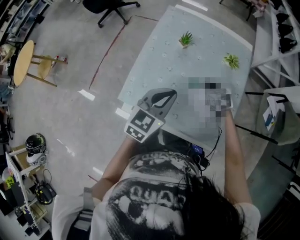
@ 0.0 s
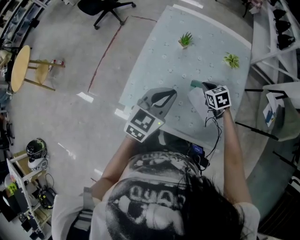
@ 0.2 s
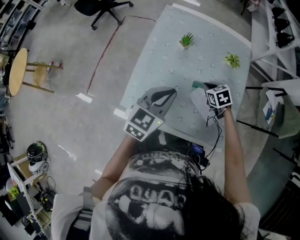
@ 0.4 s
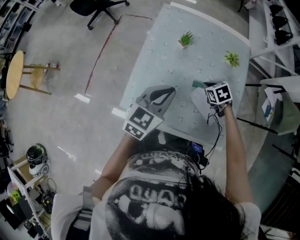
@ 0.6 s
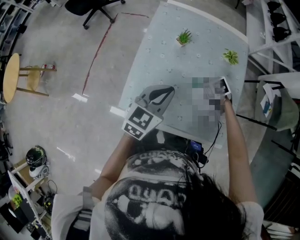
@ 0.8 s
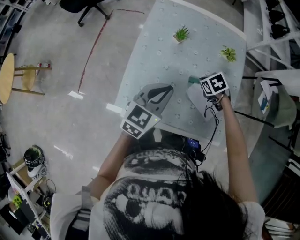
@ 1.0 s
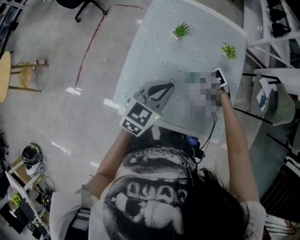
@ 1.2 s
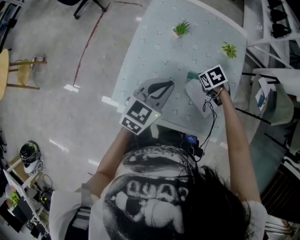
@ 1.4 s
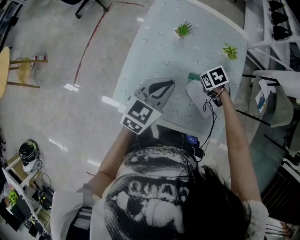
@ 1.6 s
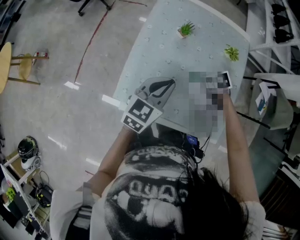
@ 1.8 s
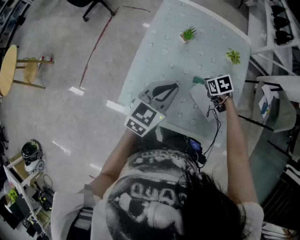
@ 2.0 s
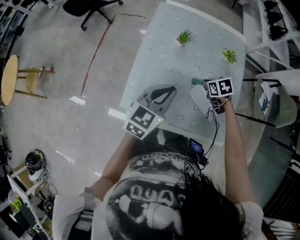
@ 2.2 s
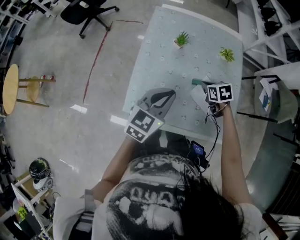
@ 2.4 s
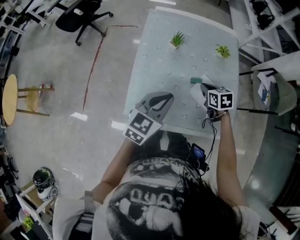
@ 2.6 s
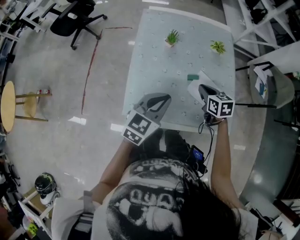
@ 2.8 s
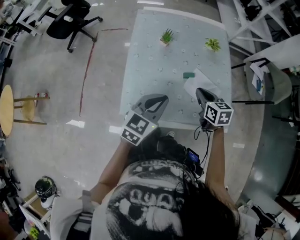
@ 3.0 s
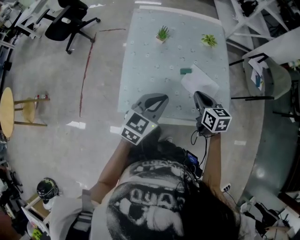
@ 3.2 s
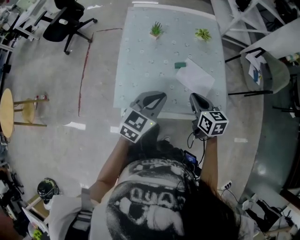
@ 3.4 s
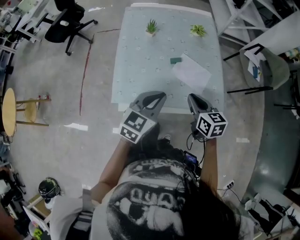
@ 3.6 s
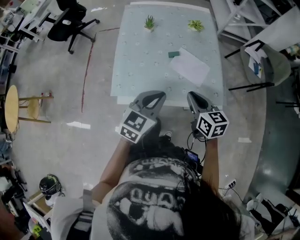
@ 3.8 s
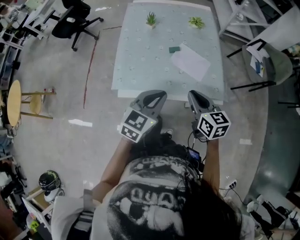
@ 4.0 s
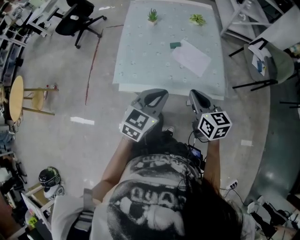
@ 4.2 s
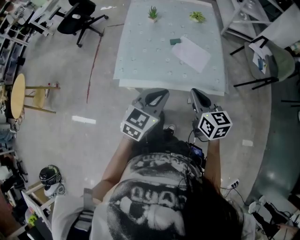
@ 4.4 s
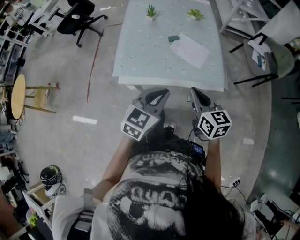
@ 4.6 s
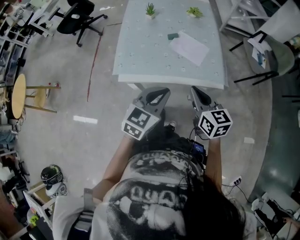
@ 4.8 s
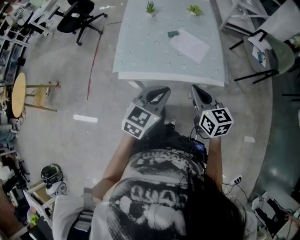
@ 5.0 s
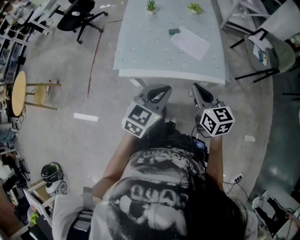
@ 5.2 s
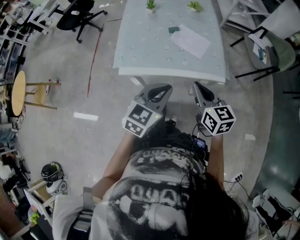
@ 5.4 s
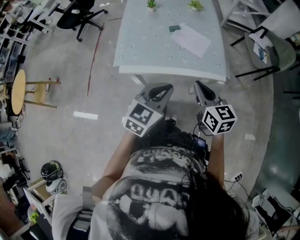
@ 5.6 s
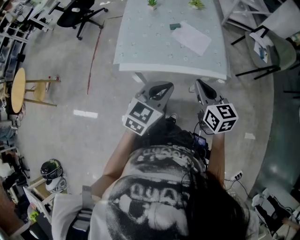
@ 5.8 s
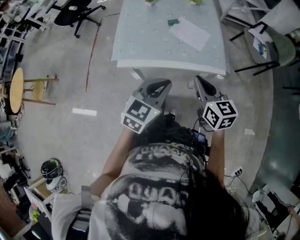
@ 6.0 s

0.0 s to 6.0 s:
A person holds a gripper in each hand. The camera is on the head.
0.0 to 1.6 s: The left gripper changes place by some 5 cm. Meanwhile the right gripper swivels about 30 degrees.
1.6 to 3.0 s: The left gripper ends up roughly 10 cm from where it was. Meanwhile the right gripper travels upward by roughly 10 cm, and tilts its fingers about 40 degrees upward.
3.0 to 4.4 s: The right gripper shifts some 25 cm backward. The left gripper travels backward and to the right by about 20 cm.
4.4 to 6.0 s: The two grippers go roughly 5 cm backward.

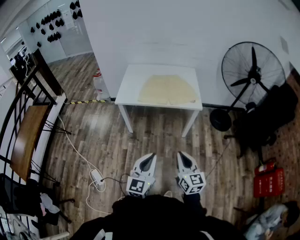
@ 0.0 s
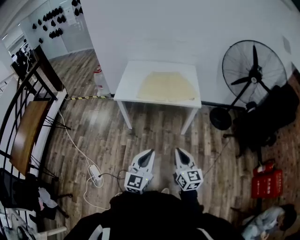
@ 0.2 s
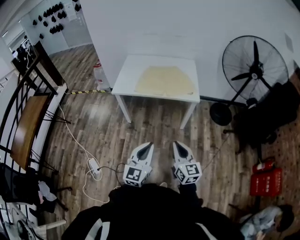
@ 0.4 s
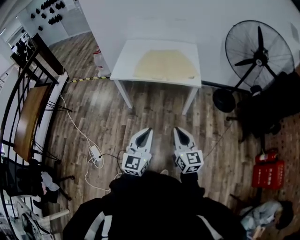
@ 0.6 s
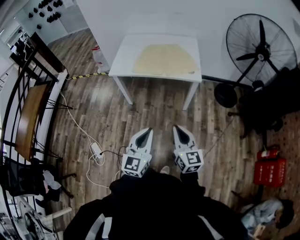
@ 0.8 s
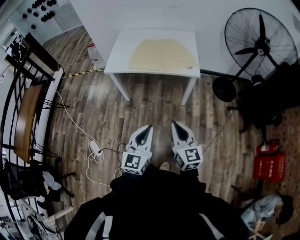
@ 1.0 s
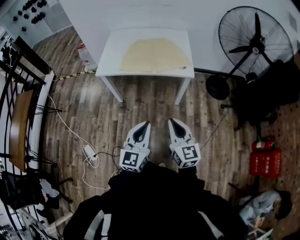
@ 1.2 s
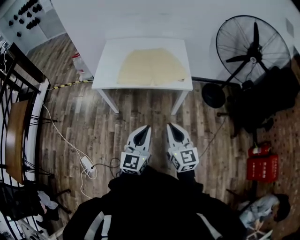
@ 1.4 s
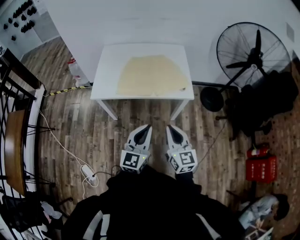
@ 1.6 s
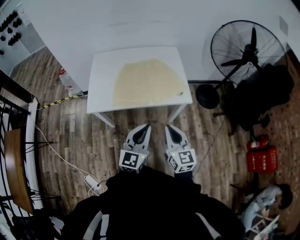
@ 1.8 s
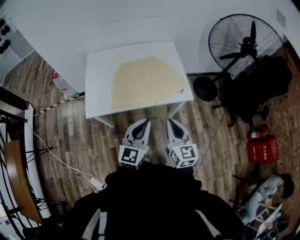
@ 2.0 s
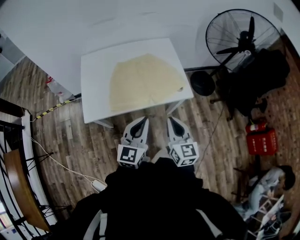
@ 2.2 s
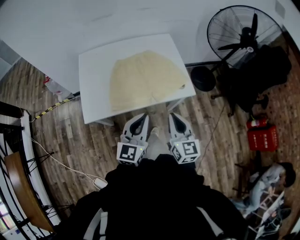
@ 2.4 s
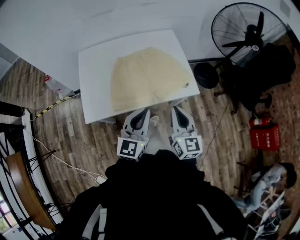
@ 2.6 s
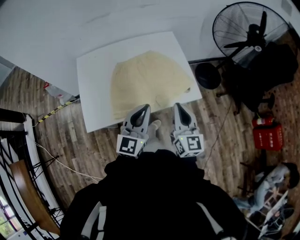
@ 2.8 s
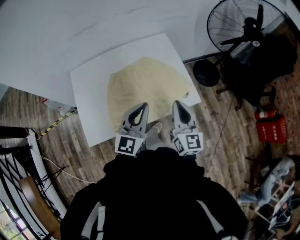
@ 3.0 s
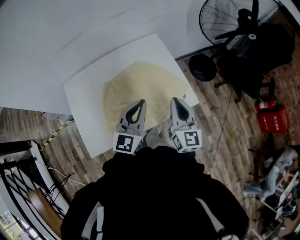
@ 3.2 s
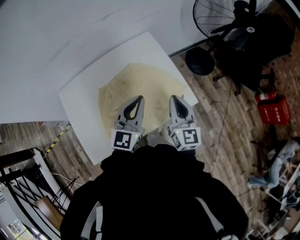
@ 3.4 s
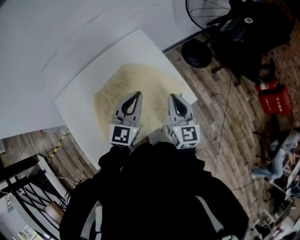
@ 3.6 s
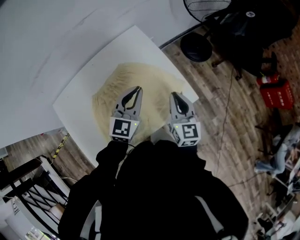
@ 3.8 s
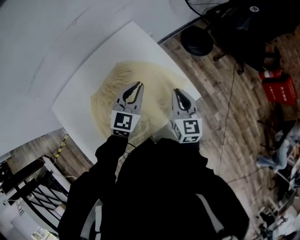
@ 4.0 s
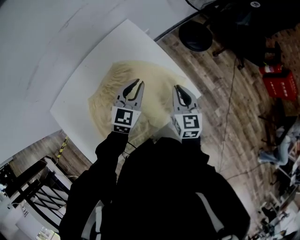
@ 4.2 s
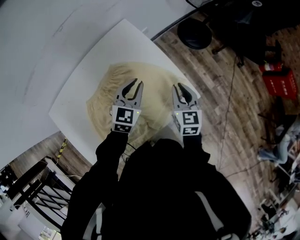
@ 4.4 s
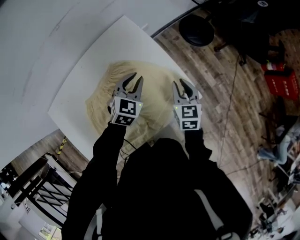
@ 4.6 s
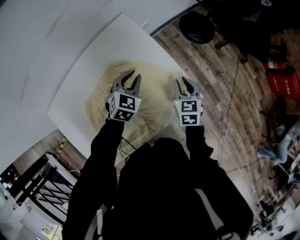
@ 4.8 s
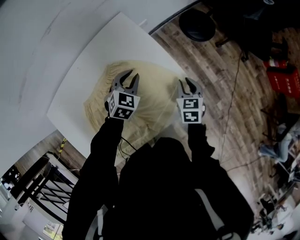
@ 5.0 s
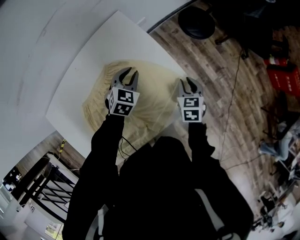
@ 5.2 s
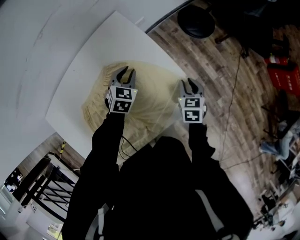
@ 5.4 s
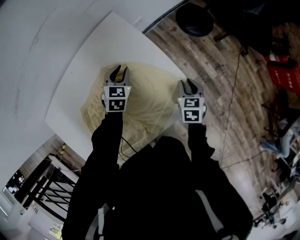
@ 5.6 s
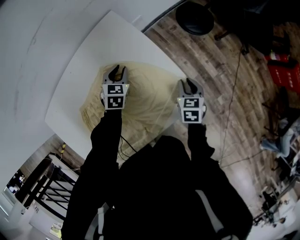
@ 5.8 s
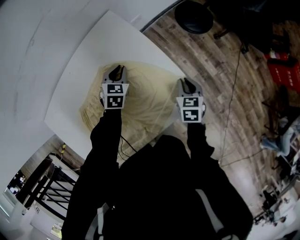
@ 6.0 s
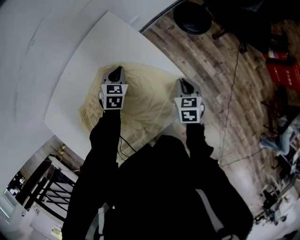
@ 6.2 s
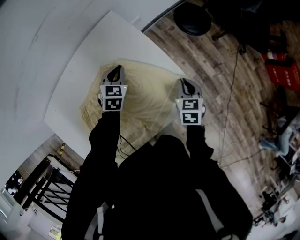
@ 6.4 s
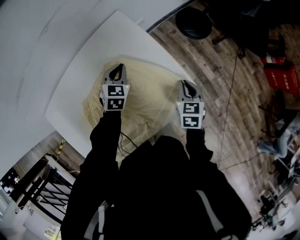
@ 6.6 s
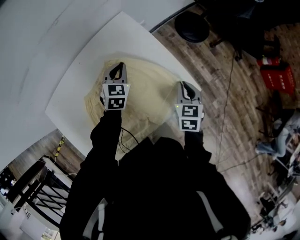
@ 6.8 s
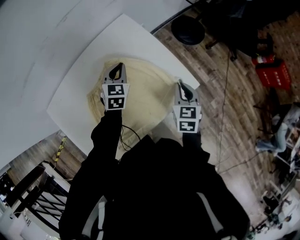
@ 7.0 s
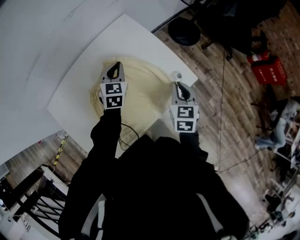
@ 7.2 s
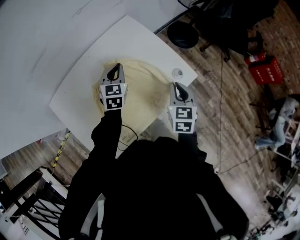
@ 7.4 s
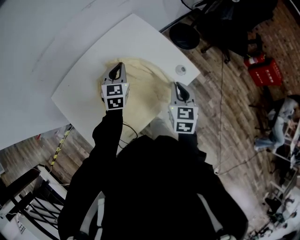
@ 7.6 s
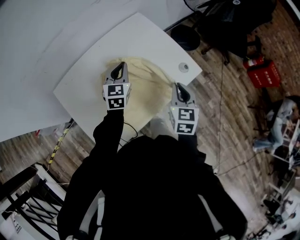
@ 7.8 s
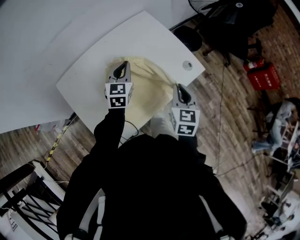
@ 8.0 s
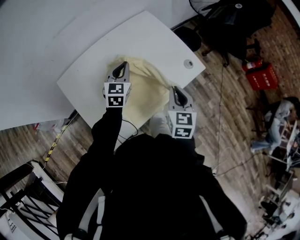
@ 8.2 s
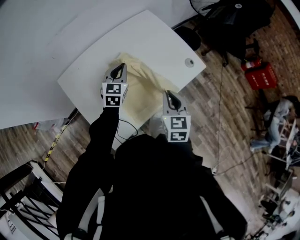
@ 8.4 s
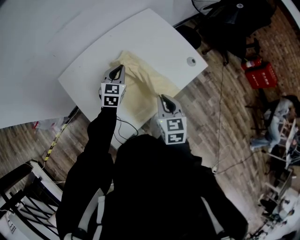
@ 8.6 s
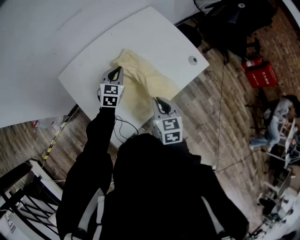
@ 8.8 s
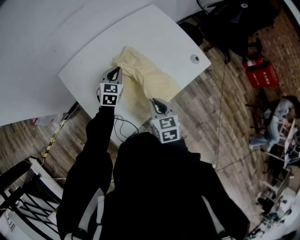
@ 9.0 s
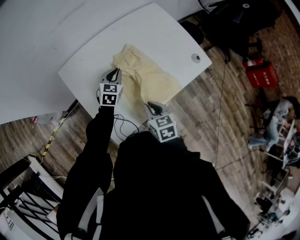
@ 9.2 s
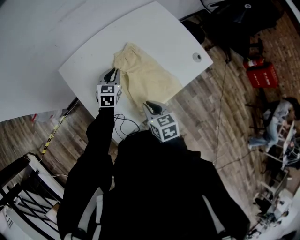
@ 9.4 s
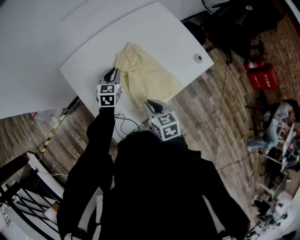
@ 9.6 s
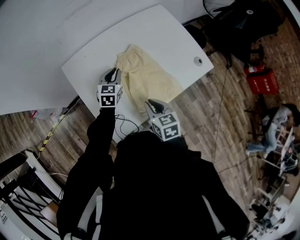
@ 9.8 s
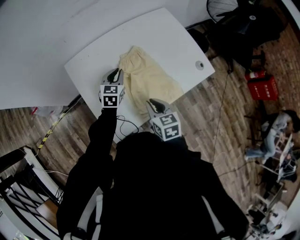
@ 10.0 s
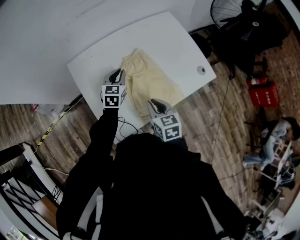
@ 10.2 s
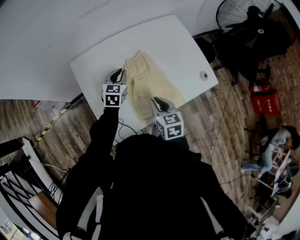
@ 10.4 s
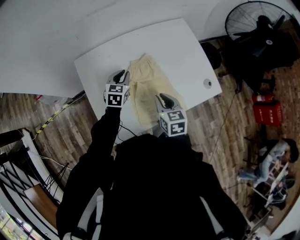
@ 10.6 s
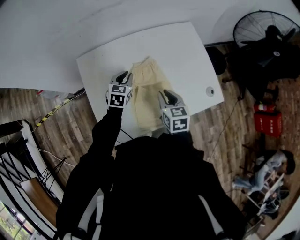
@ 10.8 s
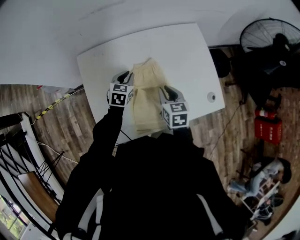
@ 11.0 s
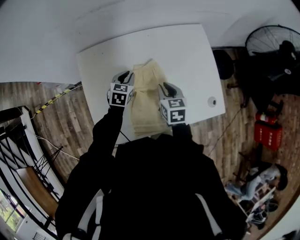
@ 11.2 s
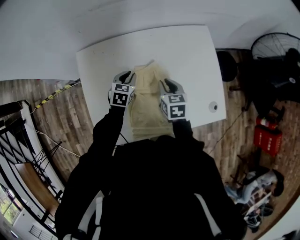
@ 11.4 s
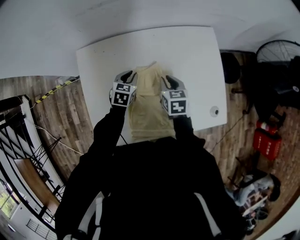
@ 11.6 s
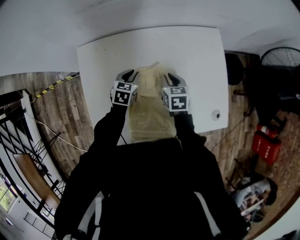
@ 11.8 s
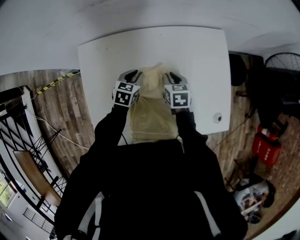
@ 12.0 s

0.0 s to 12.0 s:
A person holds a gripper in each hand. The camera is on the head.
0.0 to 1.6 s: Both grippers travel together forward, about 25 cm.
1.6 to 3.0 s: Both grippers travel together forward, roughly 30 cm. The right gripper rotates roughly 30 degrees.
3.0 to 4.4 s: Both grippers travel together forward and downward, approximately 30 cm. The left gripper tips its fingers downward by about 30 degrees, while the right gripper swivels some 30 degrees.
4.4 to 6.0 s: The left gripper travels downward, forward and to the left by some 20 cm, and swivels roughly 20 degrees. The right gripper moves downward and to the right, roughly 15 cm, and rotates about 20 degrees.
6.0 to 7.6 s: The right gripper heads upward, backward and to the left, covering approximately 30 cm, and turns by approximately 20 degrees. The left gripper goes roughly 25 cm upward and backward, and changes its angle by about 30 degrees.
7.6 to 9.0 s: The right gripper heads to the left and backward, covering about 25 cm, and swivels some 20 degrees. The left gripper shifts some 20 cm to the left, backward and downward.
9.0 to 10.4 s: The grippers stay close to where they were, moving slightly.
10.4 to 12.0 s: The left gripper travels downward and forward by approximately 15 cm, and changes its angle by approximately 20 degrees; the right gripper moves forward and downward, about 30 cm.

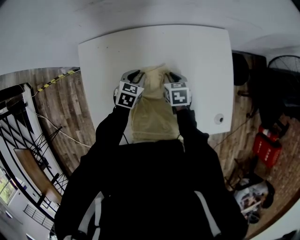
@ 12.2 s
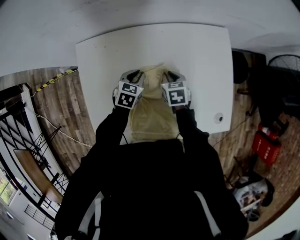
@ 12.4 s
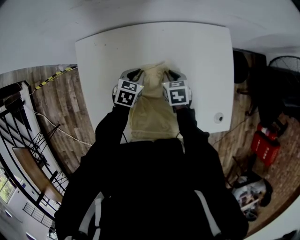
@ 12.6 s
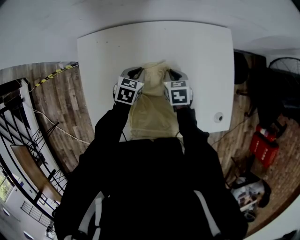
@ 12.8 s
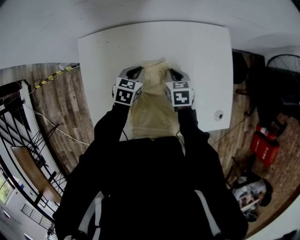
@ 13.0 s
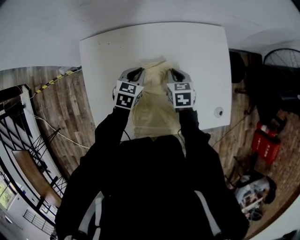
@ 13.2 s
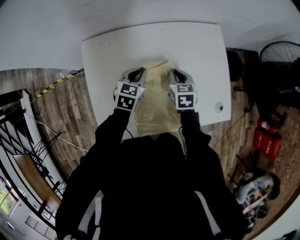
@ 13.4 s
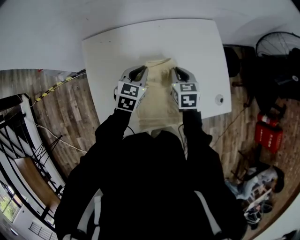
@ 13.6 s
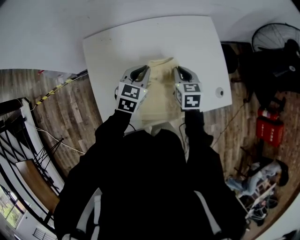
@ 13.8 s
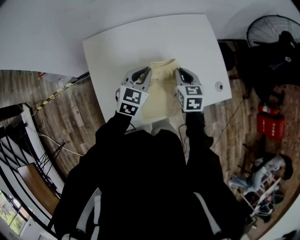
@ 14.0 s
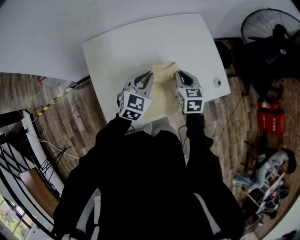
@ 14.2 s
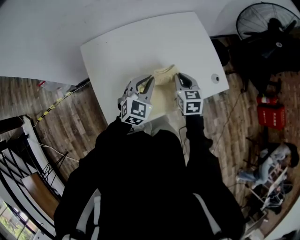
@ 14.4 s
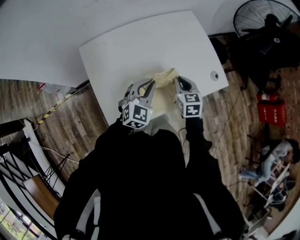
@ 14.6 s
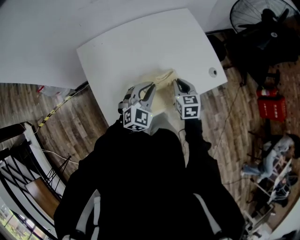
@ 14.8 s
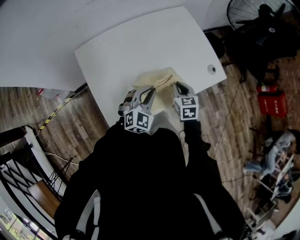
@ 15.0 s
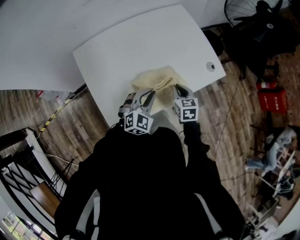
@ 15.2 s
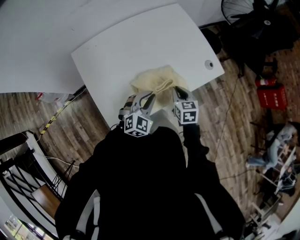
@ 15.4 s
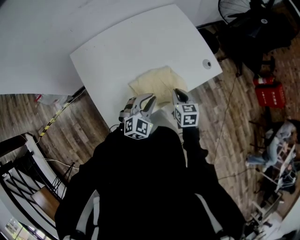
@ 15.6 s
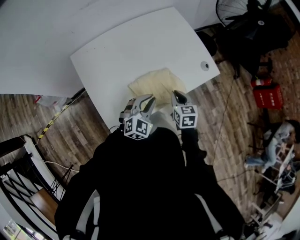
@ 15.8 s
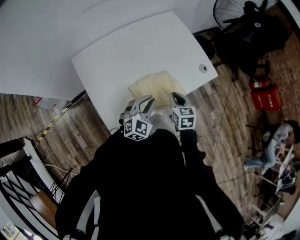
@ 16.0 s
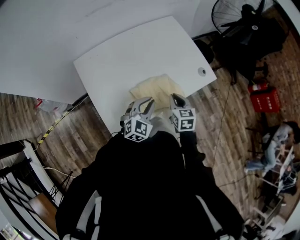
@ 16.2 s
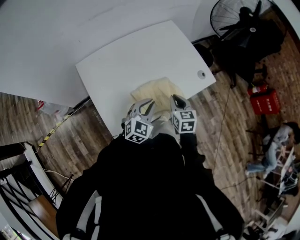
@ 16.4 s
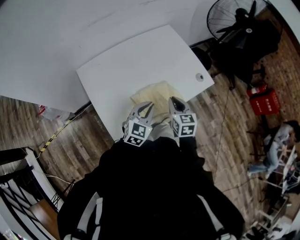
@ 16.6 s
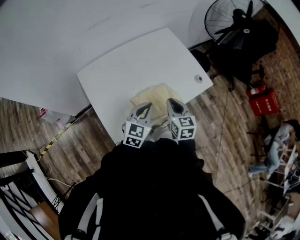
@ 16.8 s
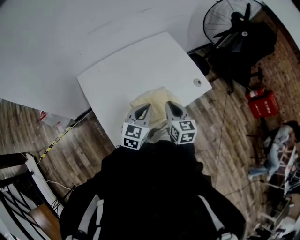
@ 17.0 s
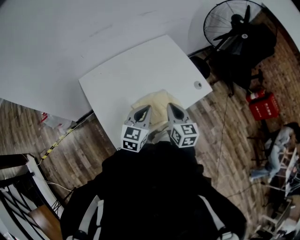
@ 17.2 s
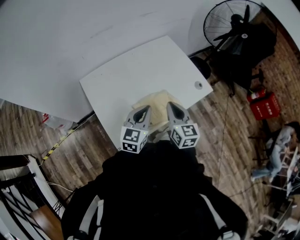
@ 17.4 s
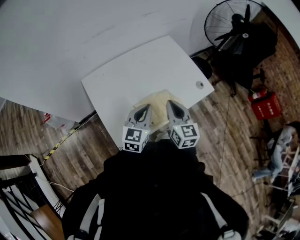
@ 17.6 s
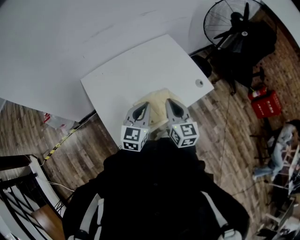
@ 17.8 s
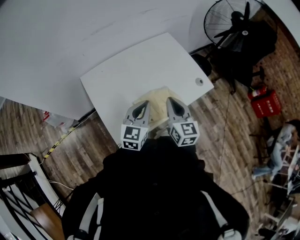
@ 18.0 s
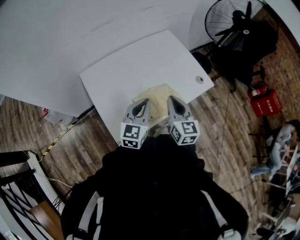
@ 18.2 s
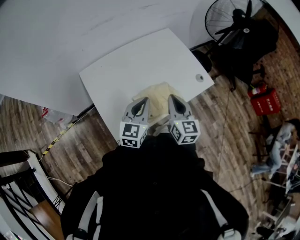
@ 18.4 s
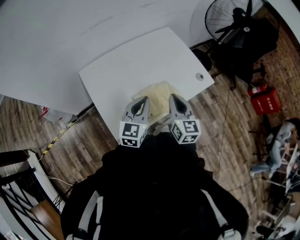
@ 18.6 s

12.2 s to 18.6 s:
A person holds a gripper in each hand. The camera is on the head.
12.2 to 13.8 s: Both grippers travel together upward and backward, about 15 cm. The right gripper changes its angle by roughly 20 degrees.
13.8 to 15.4 s: The two grippers go roughly 20 cm backward and to the right. The left gripper rotates some 40 degrees.
15.4 to 17.0 s: The two grippers go approximately 10 cm upward. The left gripper changes its angle by some 30 degrees.
17.0 to 18.6 s: The right gripper travels upward by roughly 5 cm.
